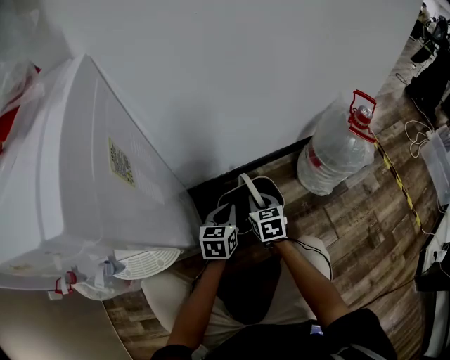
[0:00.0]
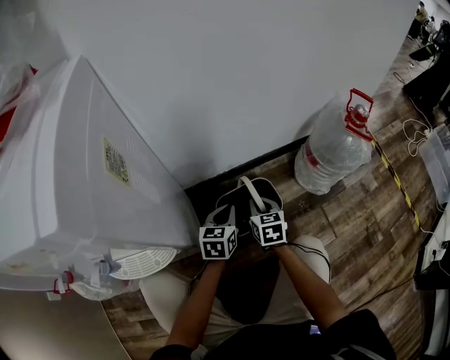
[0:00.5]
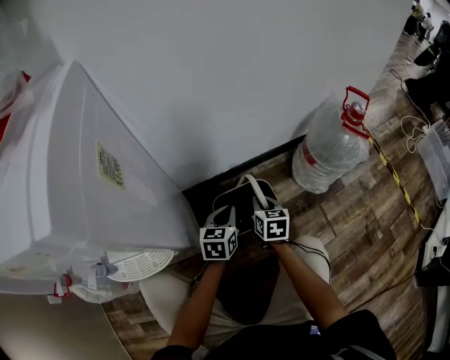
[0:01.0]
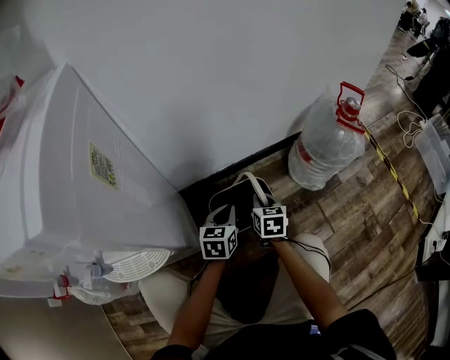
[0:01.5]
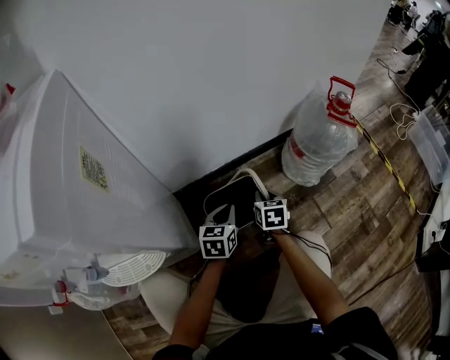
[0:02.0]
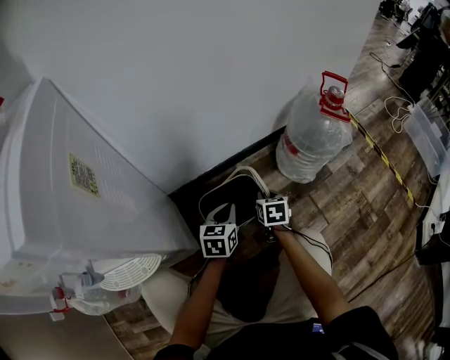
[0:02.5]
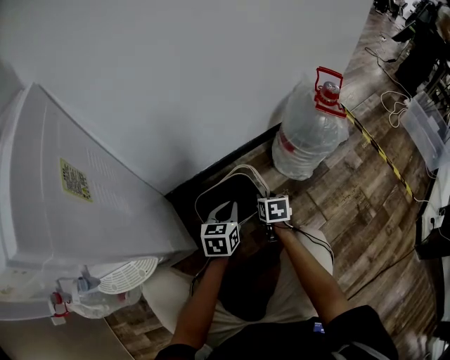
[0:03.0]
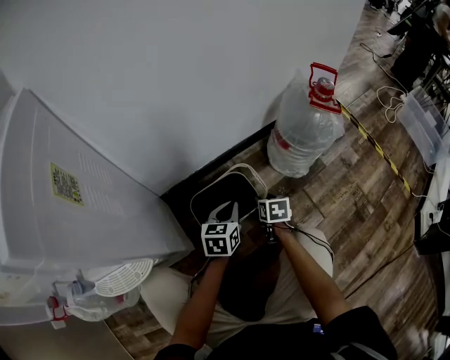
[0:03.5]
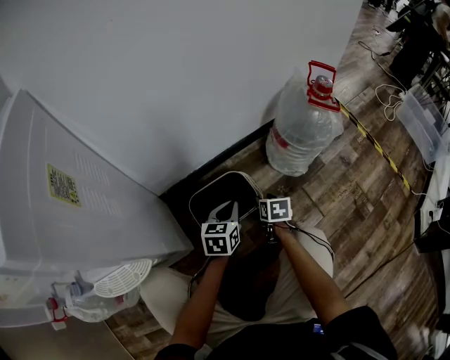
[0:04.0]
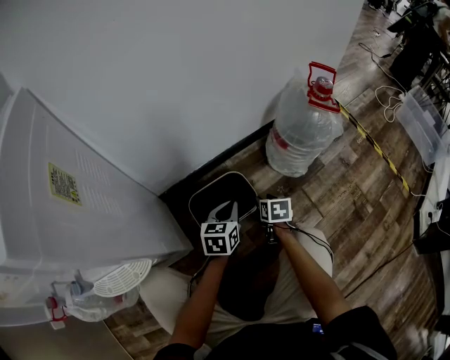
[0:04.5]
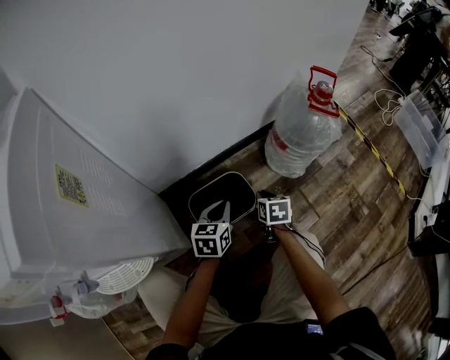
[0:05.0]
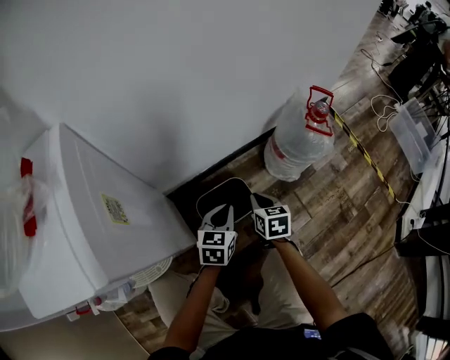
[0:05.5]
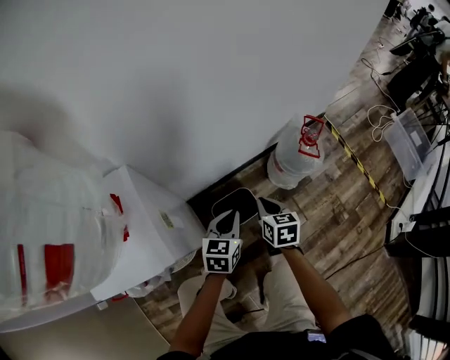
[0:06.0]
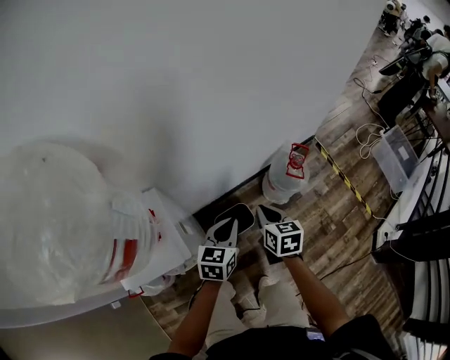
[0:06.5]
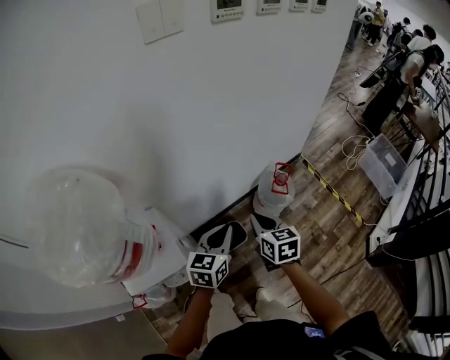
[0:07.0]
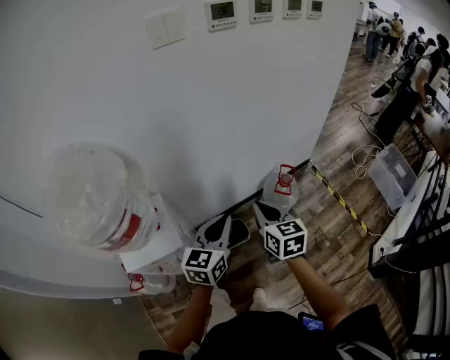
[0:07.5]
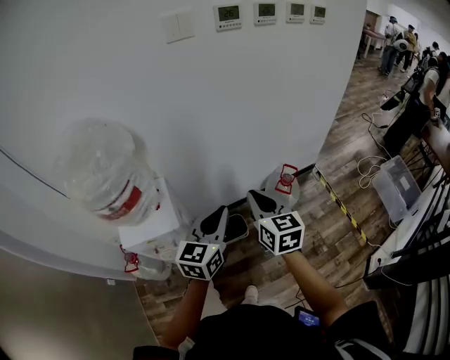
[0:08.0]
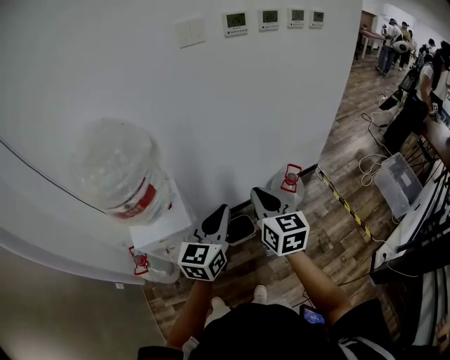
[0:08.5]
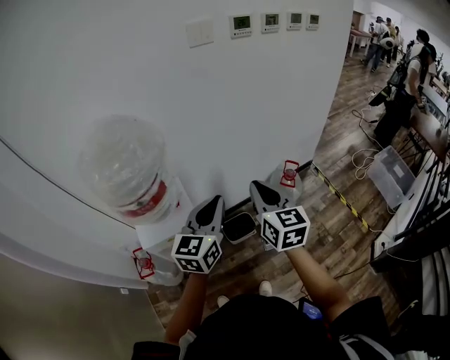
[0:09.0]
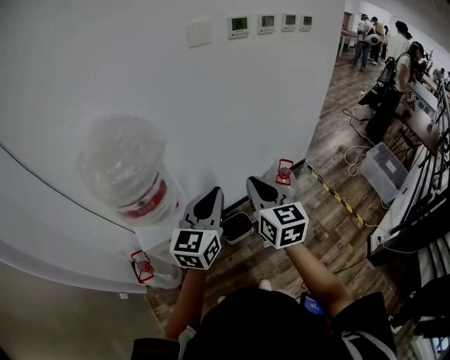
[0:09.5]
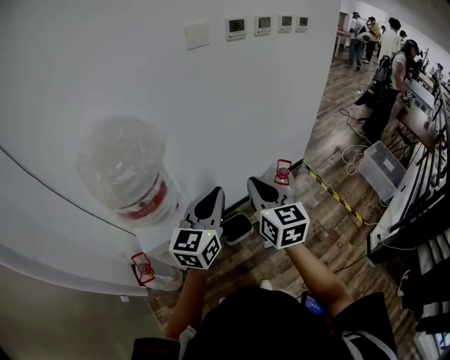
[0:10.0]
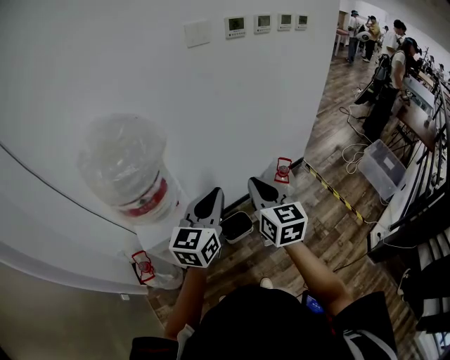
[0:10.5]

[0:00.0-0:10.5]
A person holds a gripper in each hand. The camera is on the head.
0:00.0 to 0:02.0: The left gripper travels to the right by approximately 5 cm. Meanwhile the right gripper shifts about 10 cm to the right.
0:02.0 to 0:04.0: The left gripper goes about 5 cm to the right; the right gripper goes approximately 10 cm downward and to the right, and opens up.
0:04.0 to 0:06.5: The grippers both shift upward by approximately 60 cm. The right gripper closes up.
0:06.5 to 0:08.5: Both grippers move upward and backward, roughly 30 cm. The left gripper rotates roughly 20 degrees; the right gripper swivels roughly 30 degrees.
0:08.5 to 0:10.5: The right gripper moves to the left and backward, some 5 cm, while the left gripper heads to the left and upward, covering about 10 cm.
